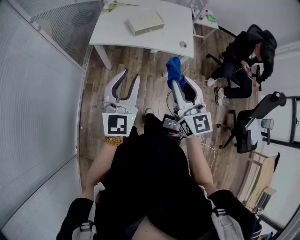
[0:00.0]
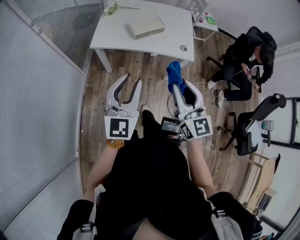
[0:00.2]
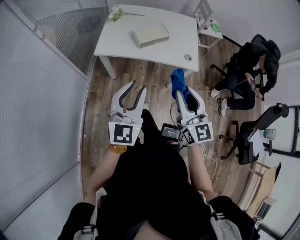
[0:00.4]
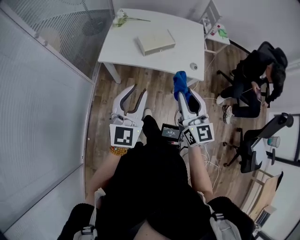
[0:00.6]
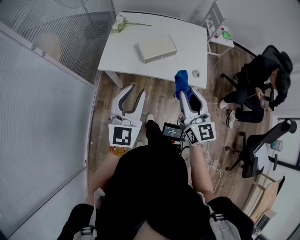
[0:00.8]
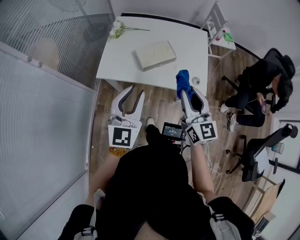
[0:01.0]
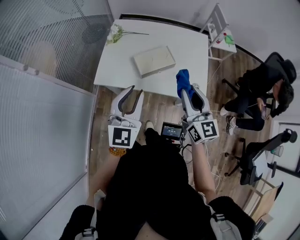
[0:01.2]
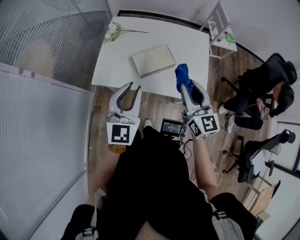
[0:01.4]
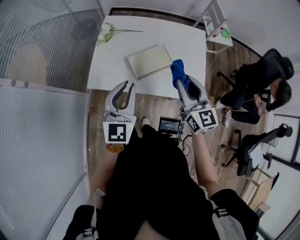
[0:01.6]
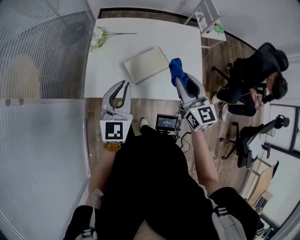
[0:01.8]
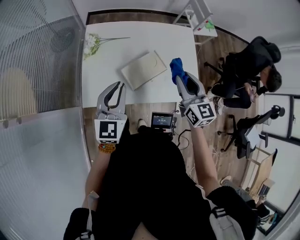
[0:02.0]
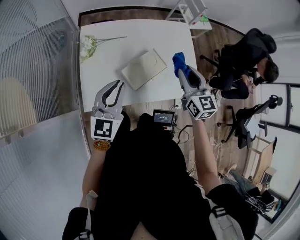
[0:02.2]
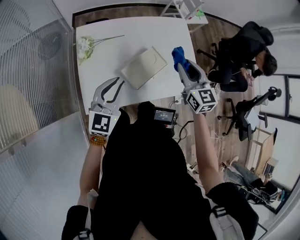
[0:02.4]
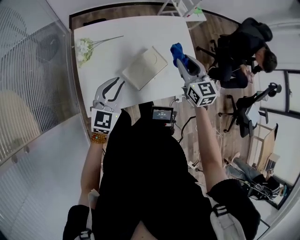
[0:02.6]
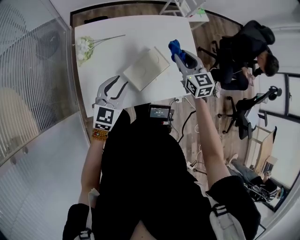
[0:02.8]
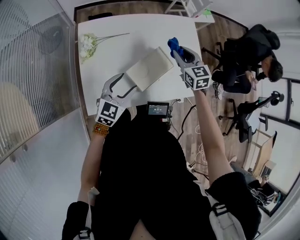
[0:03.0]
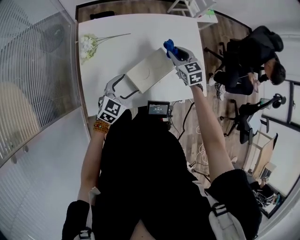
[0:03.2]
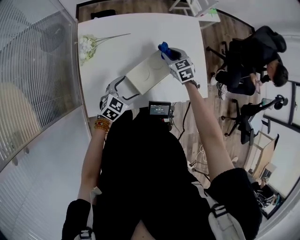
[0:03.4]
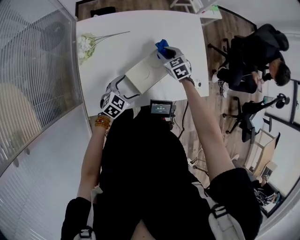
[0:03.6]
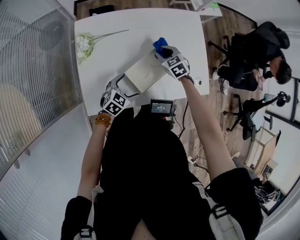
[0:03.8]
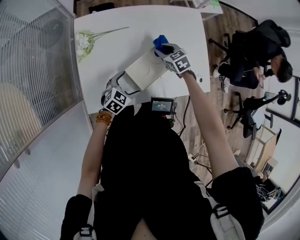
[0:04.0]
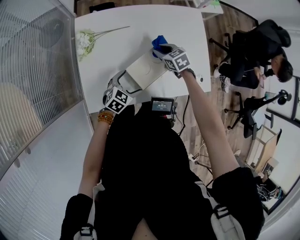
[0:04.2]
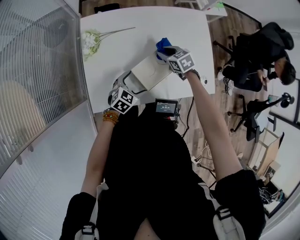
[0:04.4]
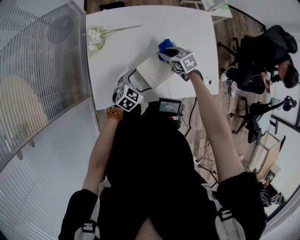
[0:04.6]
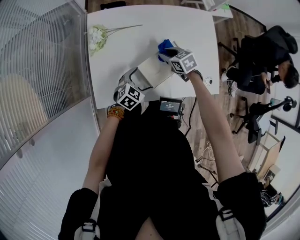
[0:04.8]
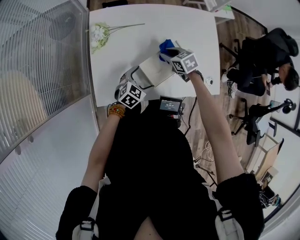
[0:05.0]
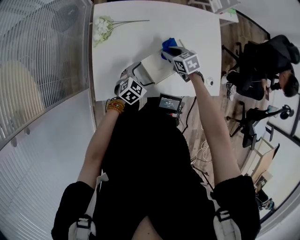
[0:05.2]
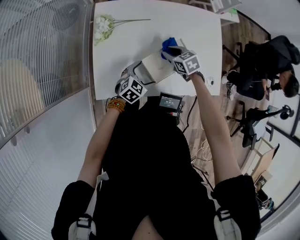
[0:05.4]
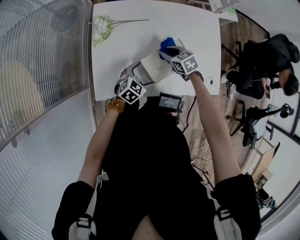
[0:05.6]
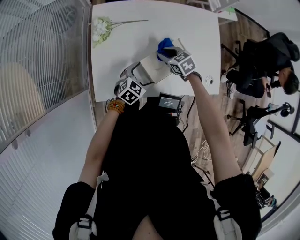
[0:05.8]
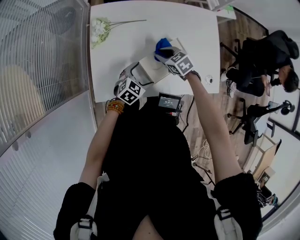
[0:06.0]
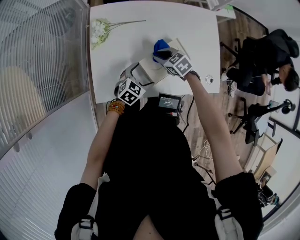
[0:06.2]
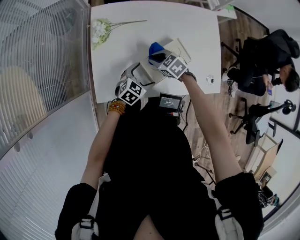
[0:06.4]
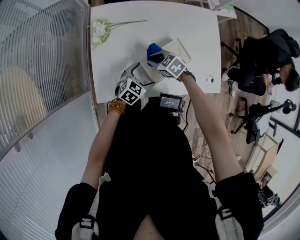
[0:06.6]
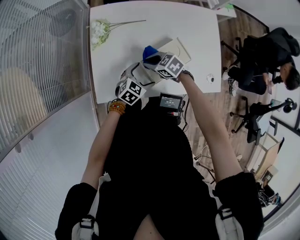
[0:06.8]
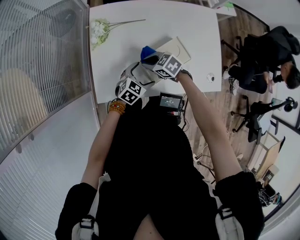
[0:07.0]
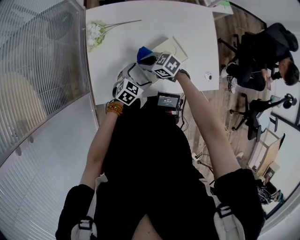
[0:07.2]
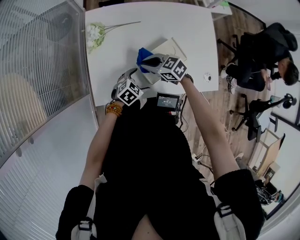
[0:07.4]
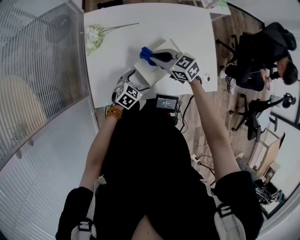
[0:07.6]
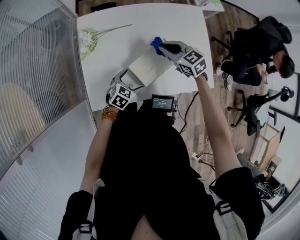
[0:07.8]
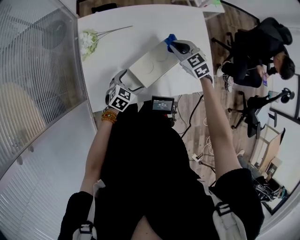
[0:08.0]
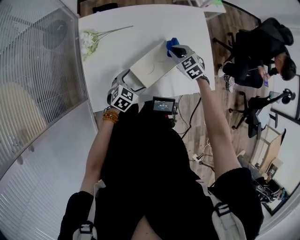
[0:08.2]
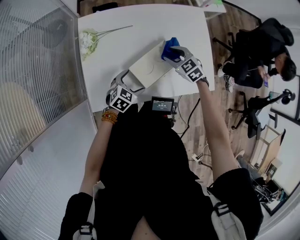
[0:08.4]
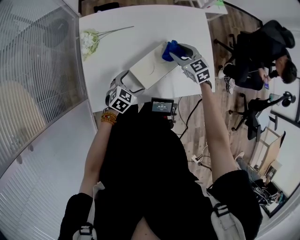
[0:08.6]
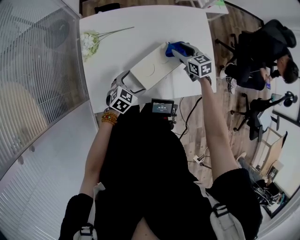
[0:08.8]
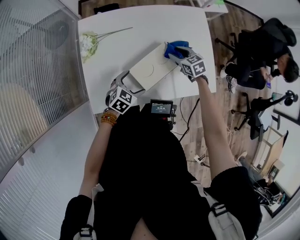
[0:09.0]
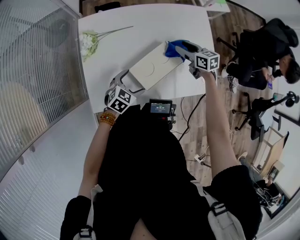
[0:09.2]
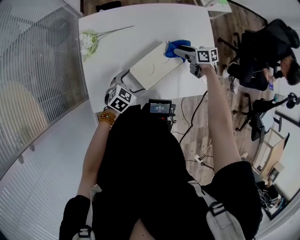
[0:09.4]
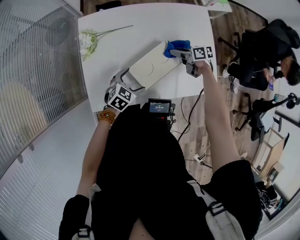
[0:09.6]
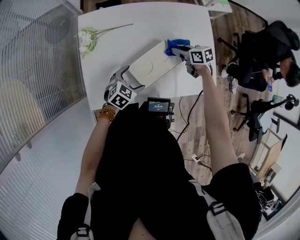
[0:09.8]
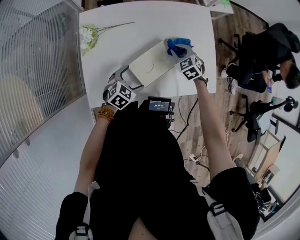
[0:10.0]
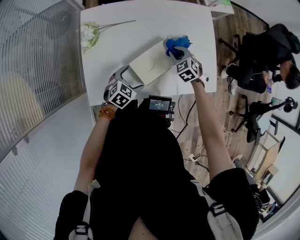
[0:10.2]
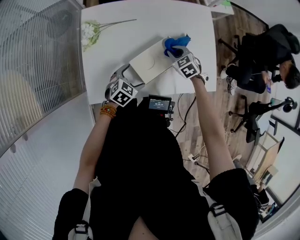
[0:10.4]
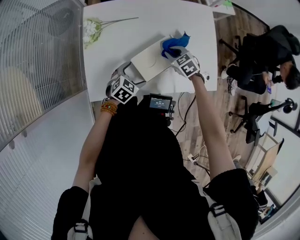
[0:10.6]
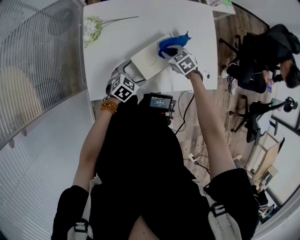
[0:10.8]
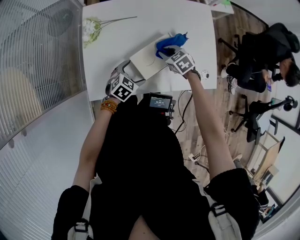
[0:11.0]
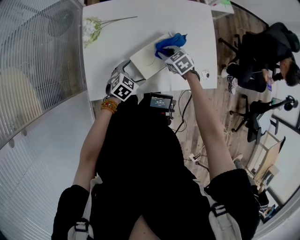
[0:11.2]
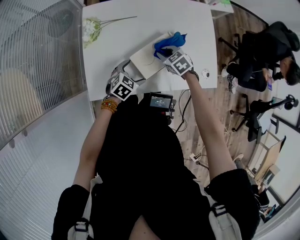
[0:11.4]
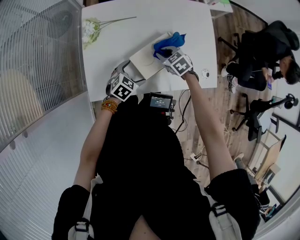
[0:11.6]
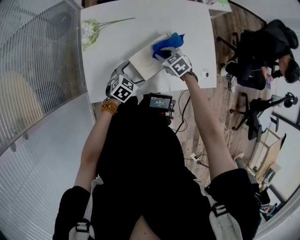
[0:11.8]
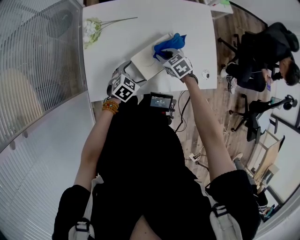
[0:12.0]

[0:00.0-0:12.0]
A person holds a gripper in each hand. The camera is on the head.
0.0 to 1.6 s: The grippers both shift forward by roughly 35 cm.
1.6 to 3.0 s: The left gripper shifts roughly 15 cm downward, and changes its angle by some 40 degrees, while the right gripper changes place by approximately 25 cm, and turns by about 30 degrees.
3.0 to 4.4 s: The left gripper travels downward by roughly 15 cm, turns by approximately 20 degrees, and opens its fingers. The right gripper moves downward and to the left, roughly 15 cm, and swivels roughly 30 degrees.
4.4 to 6.0 s: The right gripper heads to the left, covering approximately 5 cm.
6.0 to 7.6 s: The right gripper shifts approximately 10 cm upward, and changes its angle by some 20 degrees.
7.6 to 9.0 s: The right gripper goes some 20 cm to the right, downward and forward, swivels roughly 30 degrees, and opens its fingers.
9.0 to 10.4 s: The right gripper closes up.
10.4 to 12.0 s: The right gripper heads to the left, covering roughly 5 cm.

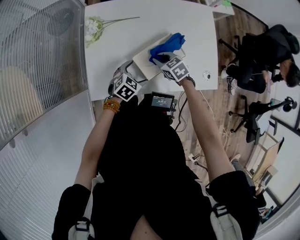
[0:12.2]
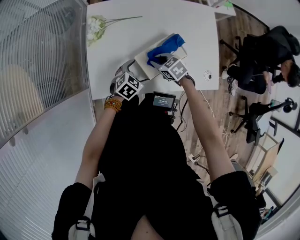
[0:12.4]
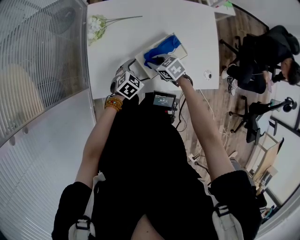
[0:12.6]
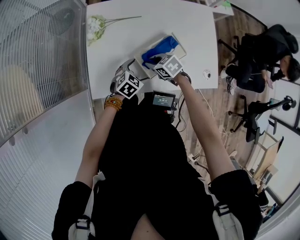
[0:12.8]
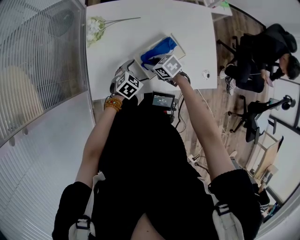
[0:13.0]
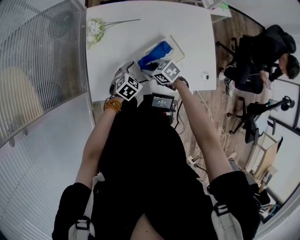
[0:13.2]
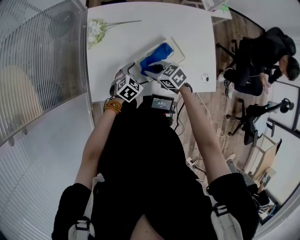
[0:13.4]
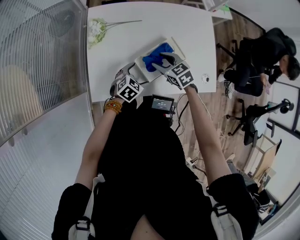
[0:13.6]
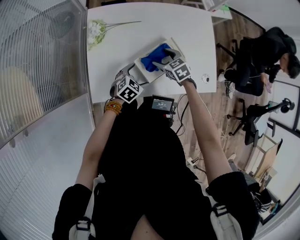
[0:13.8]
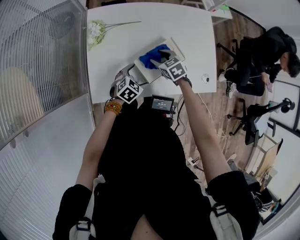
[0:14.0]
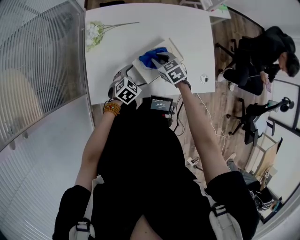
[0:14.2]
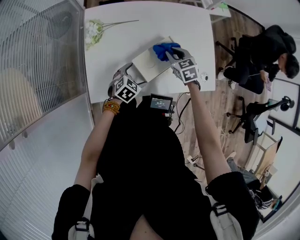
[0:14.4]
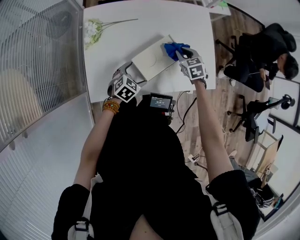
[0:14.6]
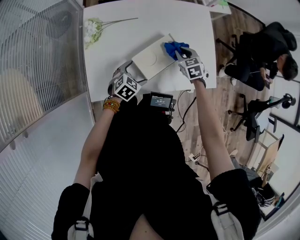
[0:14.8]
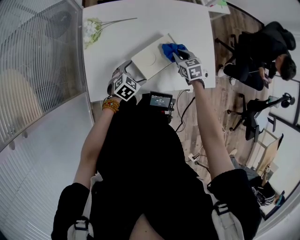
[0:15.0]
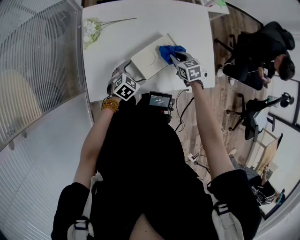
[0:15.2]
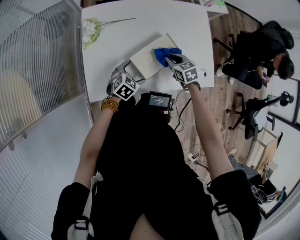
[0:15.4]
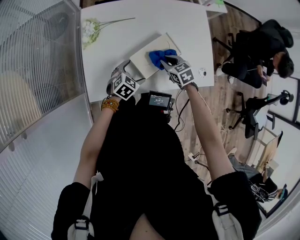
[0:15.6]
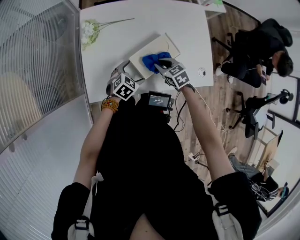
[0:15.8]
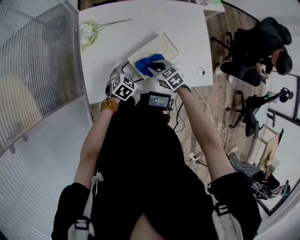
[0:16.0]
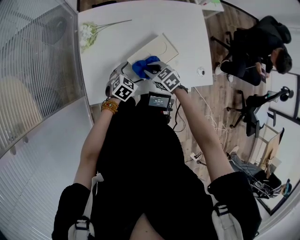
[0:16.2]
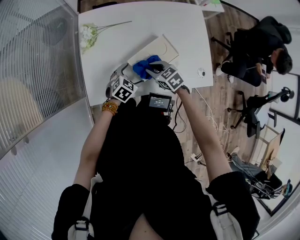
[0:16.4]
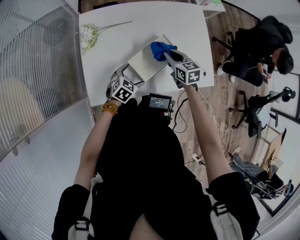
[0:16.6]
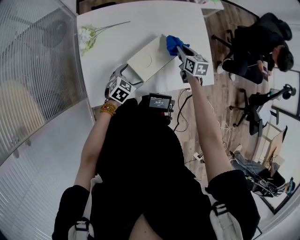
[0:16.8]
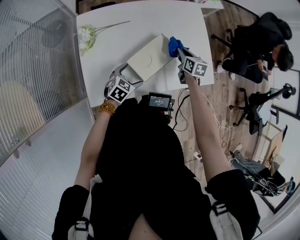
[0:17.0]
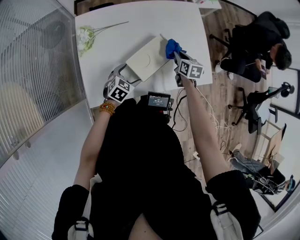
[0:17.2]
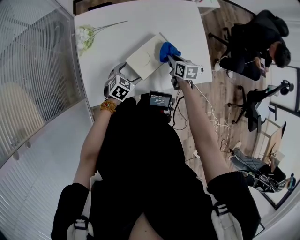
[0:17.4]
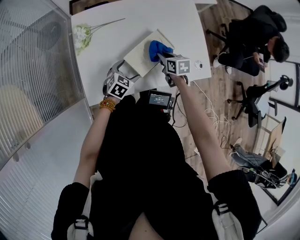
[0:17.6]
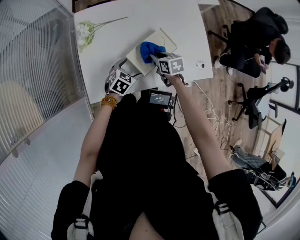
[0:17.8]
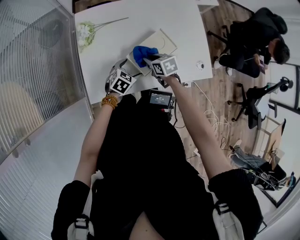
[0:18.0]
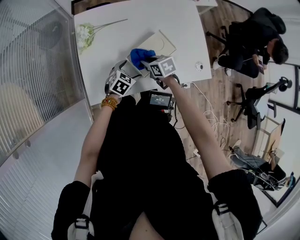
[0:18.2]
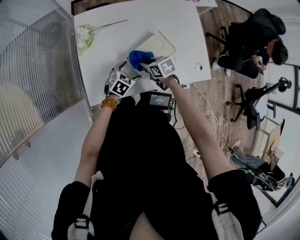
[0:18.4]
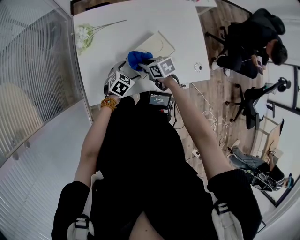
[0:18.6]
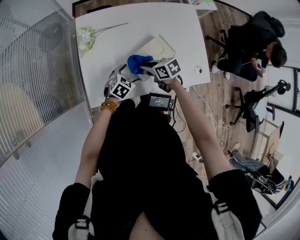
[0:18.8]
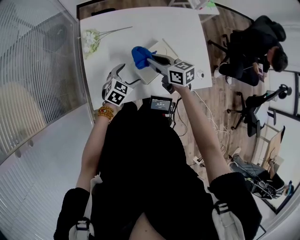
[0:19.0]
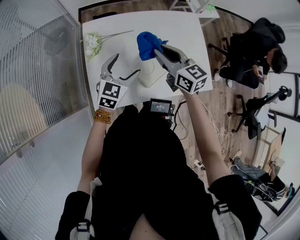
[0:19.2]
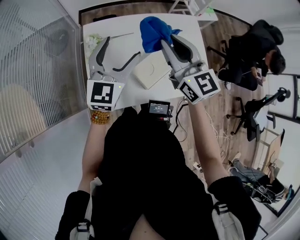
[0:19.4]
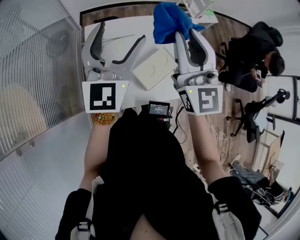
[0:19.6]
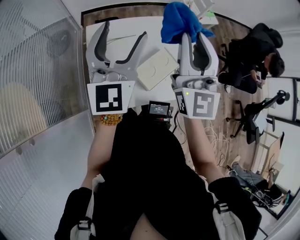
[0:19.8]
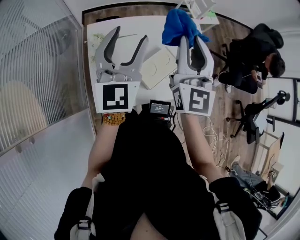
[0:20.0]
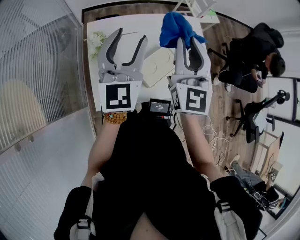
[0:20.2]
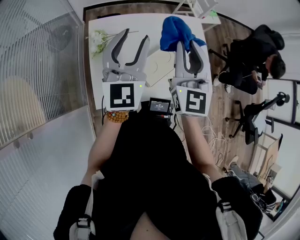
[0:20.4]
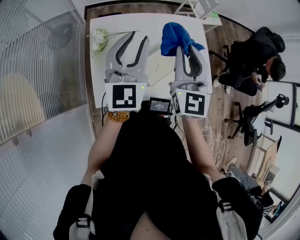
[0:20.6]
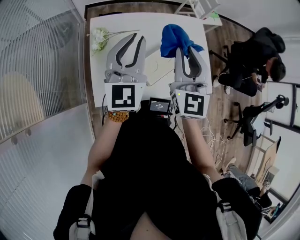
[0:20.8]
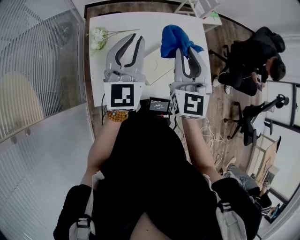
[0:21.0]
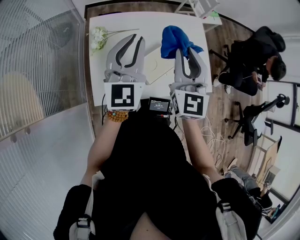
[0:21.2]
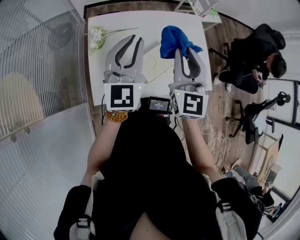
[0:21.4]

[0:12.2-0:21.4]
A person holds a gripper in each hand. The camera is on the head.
12.2 to 13.8 s: The right gripper opens.
13.8 to 15.2 s: The right gripper shifts approximately 10 cm to the right, and closes its fingers.
15.2 to 16.8 s: The right gripper travels to the left and back again, roughly 10 cm each way, and turns by roughly 30 degrees.
16.8 to 18.4 s: The right gripper travels to the left and backward by approximately 20 cm, and turns by roughly 30 degrees.
18.4 to 19.8 s: Both grippers travel together upward, approximately 40 cm. The left gripper tilts its fingers about 60 degrees upward. The right gripper points its fingers about 60 degrees further upward.
19.8 to 21.4 s: Both grippers move downward, about 10 cm. The left gripper closes up.

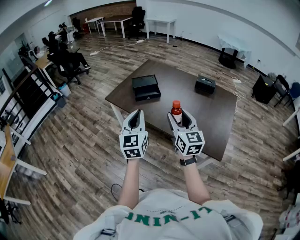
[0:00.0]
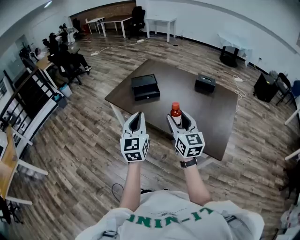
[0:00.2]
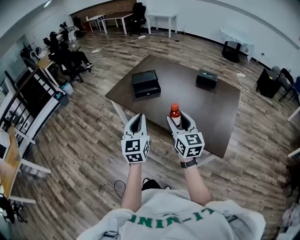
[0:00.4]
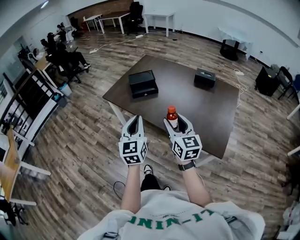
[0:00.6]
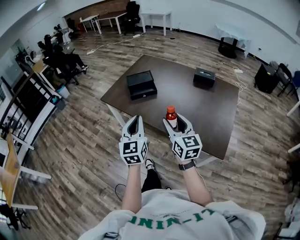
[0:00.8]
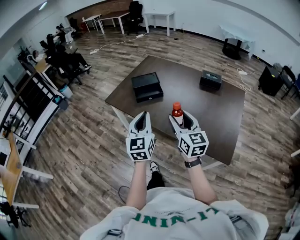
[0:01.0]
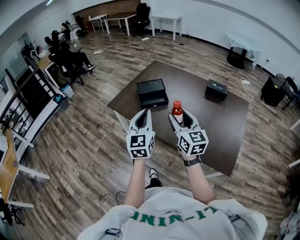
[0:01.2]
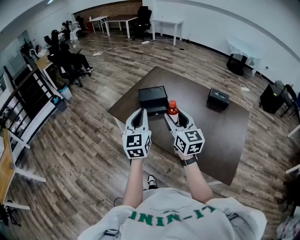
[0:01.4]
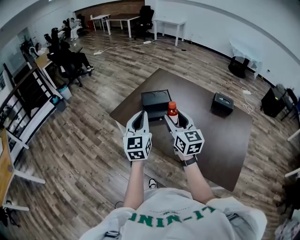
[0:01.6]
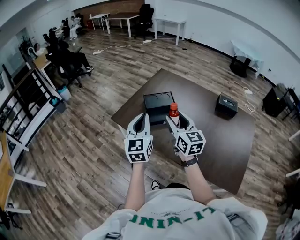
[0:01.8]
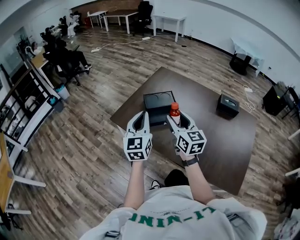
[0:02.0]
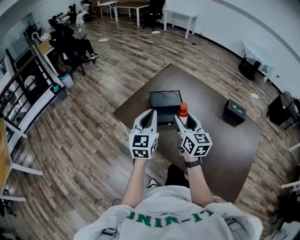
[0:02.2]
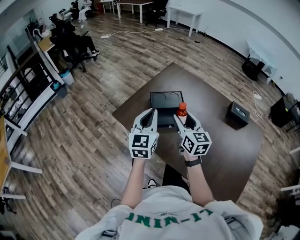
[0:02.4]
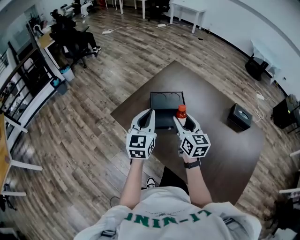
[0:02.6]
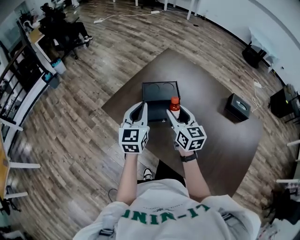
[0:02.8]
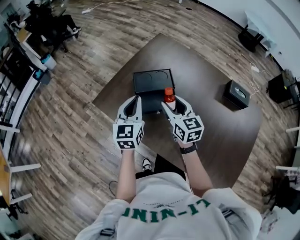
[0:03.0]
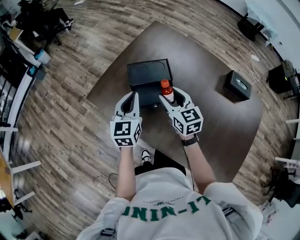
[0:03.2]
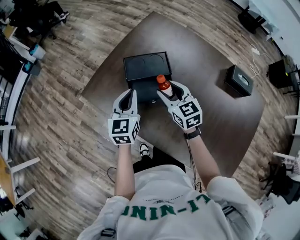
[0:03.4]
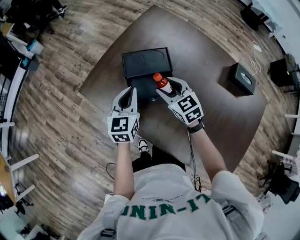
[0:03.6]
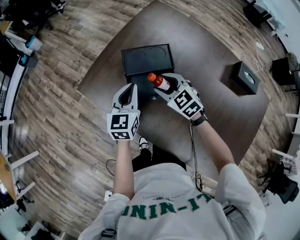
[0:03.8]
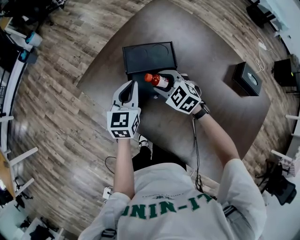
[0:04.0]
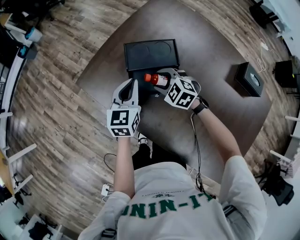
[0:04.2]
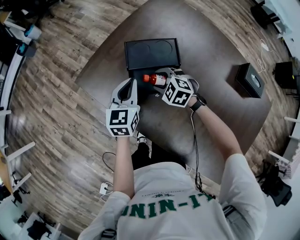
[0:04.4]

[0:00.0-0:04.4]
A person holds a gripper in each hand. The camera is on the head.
0.0 to 1.4 s: Both grippers travel together forward, about 20 cm.
1.4 to 3.0 s: Both grippers travel together forward and downward, approximately 35 cm.
3.0 to 4.4 s: The right gripper shifts roughly 20 cm downward, and tips its fingers downward by about 40 degrees; the left gripper shifts roughly 15 cm downward and forward.
